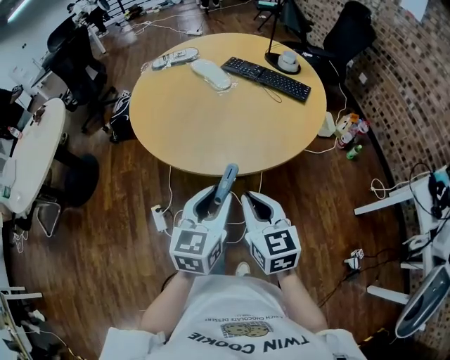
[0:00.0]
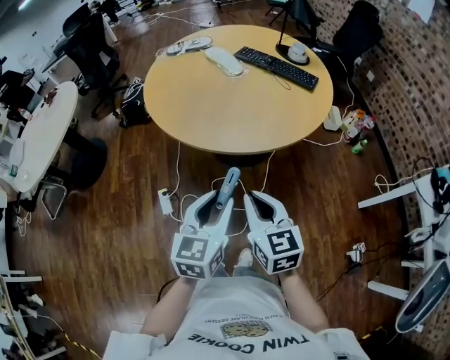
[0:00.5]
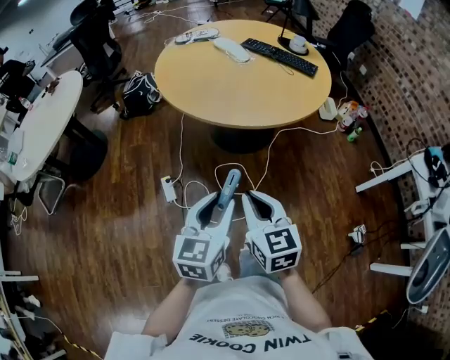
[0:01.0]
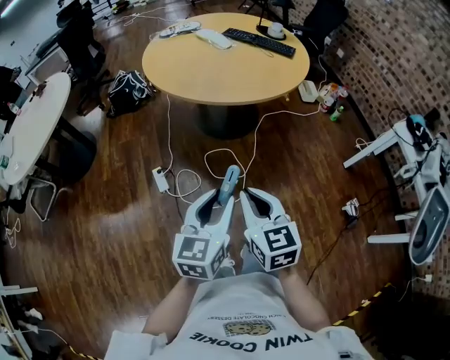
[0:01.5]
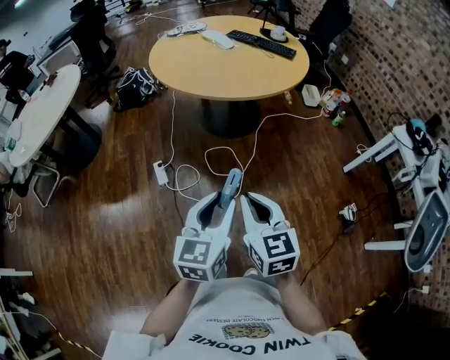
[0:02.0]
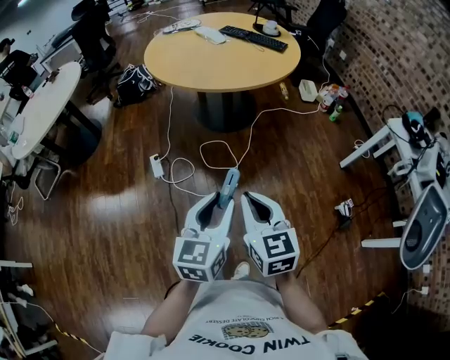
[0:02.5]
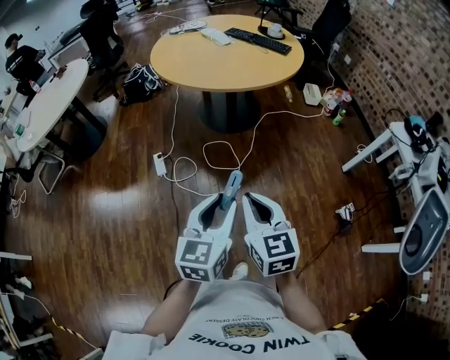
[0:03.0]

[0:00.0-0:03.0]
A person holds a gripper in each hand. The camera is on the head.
0:00.0 to 0:01.5: The grippers both shift backward by approximately 35 cm.
0:01.5 to 0:03.0: The grippers both shift backward and to the right by approximately 20 cm.

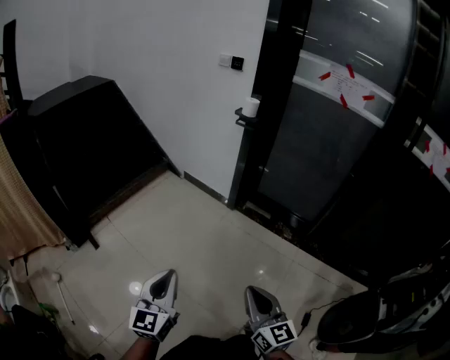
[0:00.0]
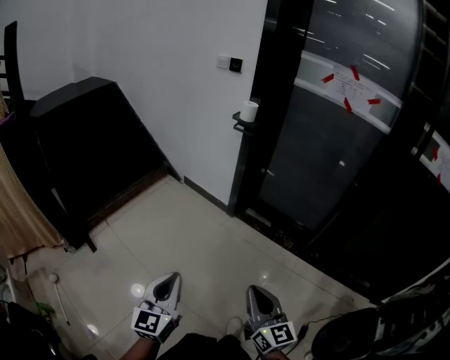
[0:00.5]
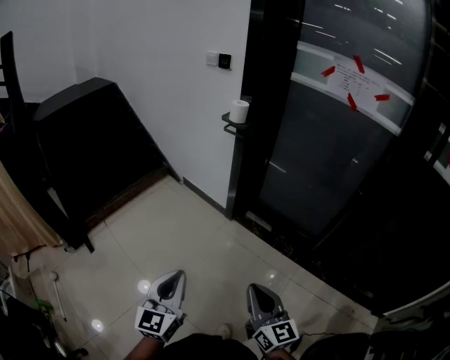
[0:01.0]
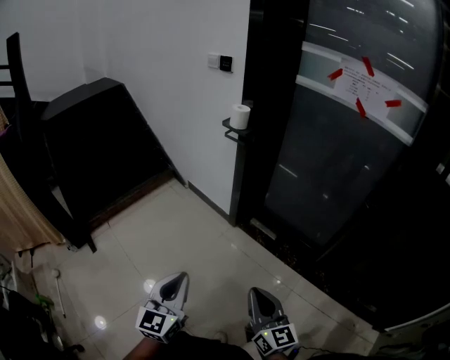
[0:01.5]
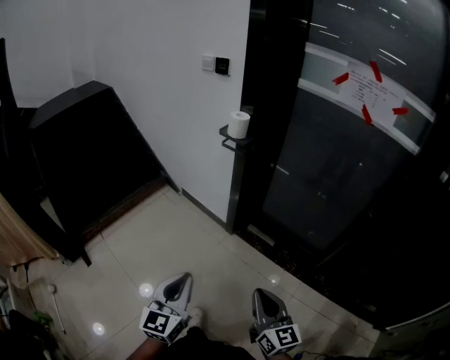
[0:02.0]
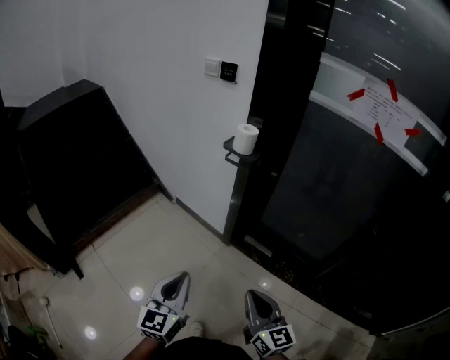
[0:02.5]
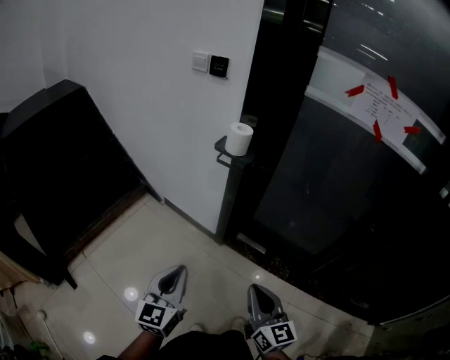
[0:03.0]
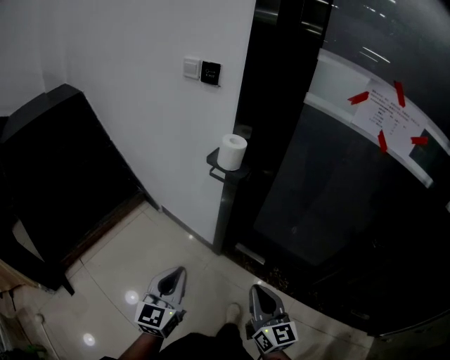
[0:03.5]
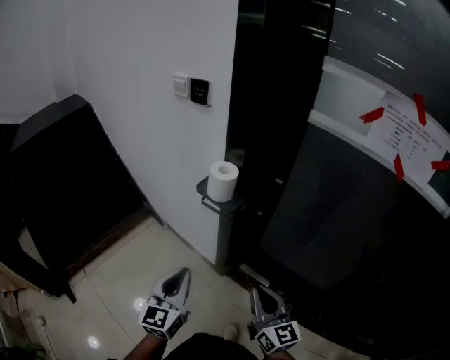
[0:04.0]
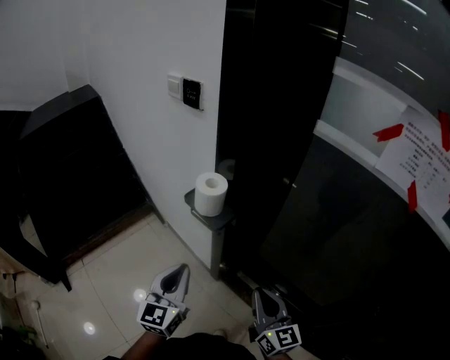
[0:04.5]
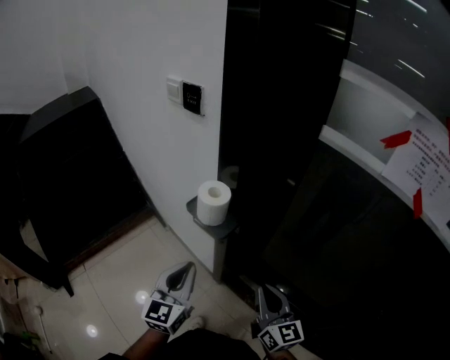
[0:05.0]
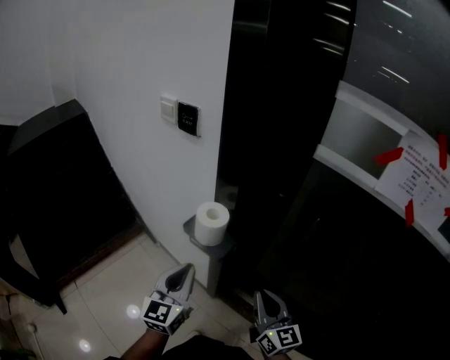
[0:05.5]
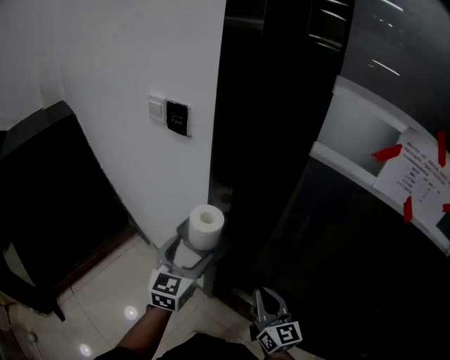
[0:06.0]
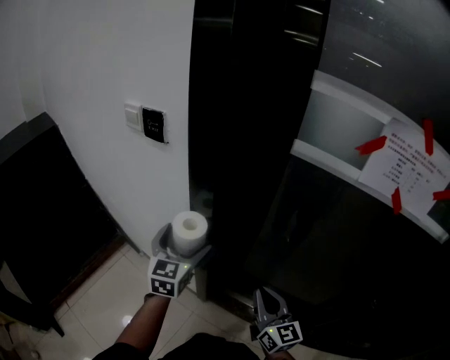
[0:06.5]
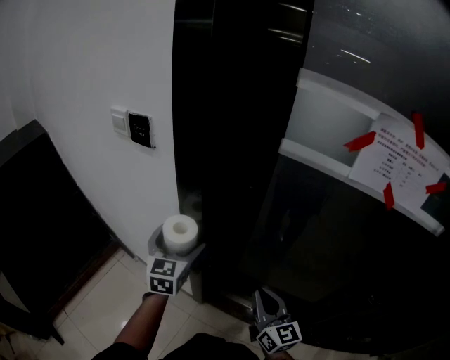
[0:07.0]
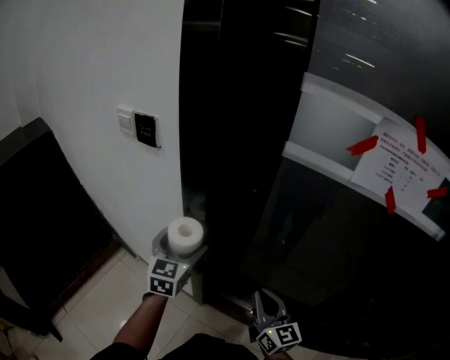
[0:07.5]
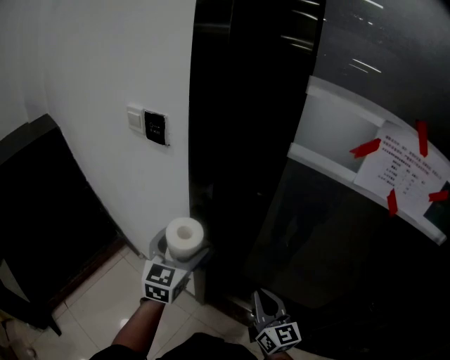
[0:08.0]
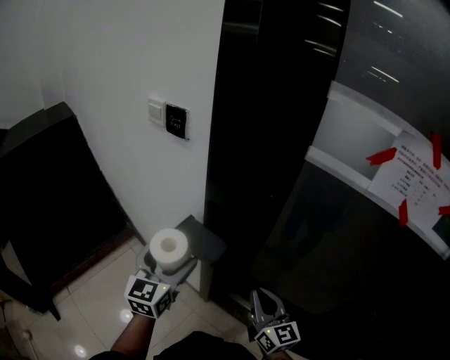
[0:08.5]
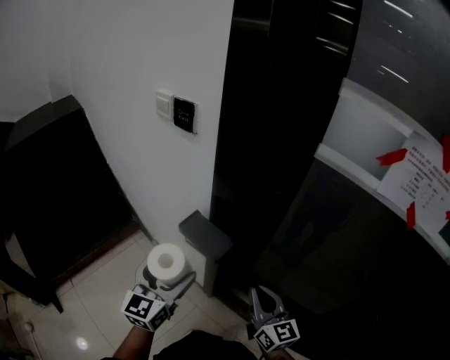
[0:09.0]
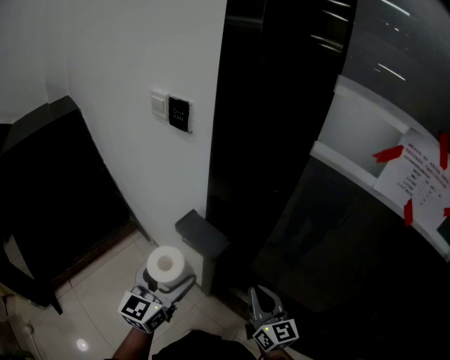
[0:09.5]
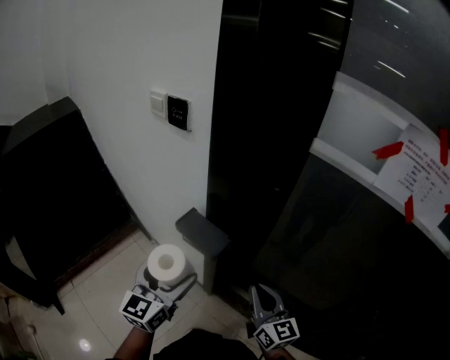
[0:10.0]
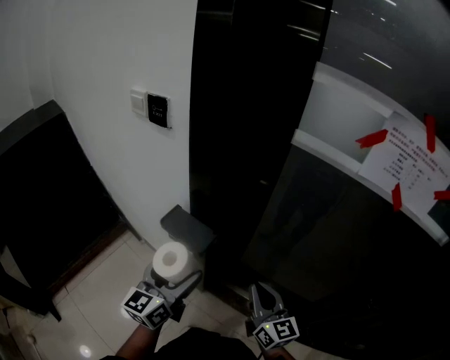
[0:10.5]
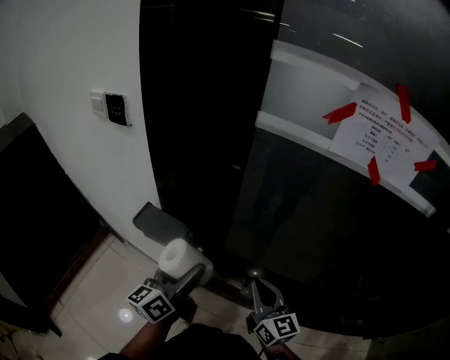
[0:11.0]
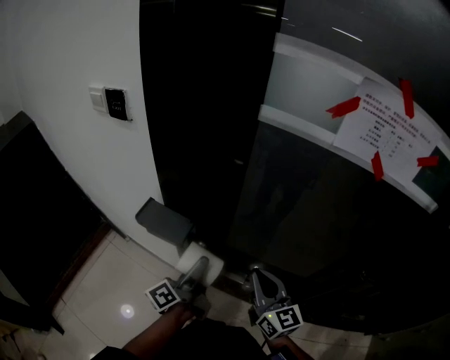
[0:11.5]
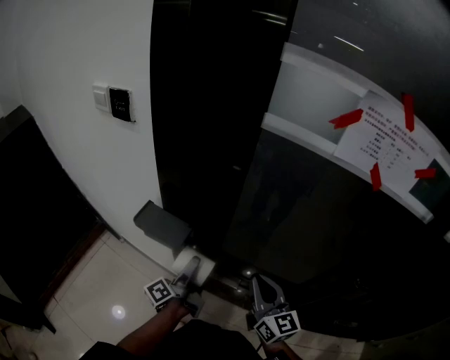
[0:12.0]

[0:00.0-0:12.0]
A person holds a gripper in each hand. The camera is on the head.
0:00.0 to 0:02.0: Both grippers move forward and to the right, about 35 cm.
0:02.0 to 0:04.0: The two grippers go about 35 cm forward.
0:04.0 to 0:06.0: The grippers both shift forward by roughly 20 cm. The left gripper opens its fingers.
0:08.0 to 0:10.0: The left gripper moves backward and to the left, about 10 cm.
0:10.0 to 0:12.0: The left gripper travels to the right, downward and forward by some 20 cm, and rolls counterclockwise, seen from behind, by some 80 degrees, while the right gripper travels to the right by approximately 10 cm.

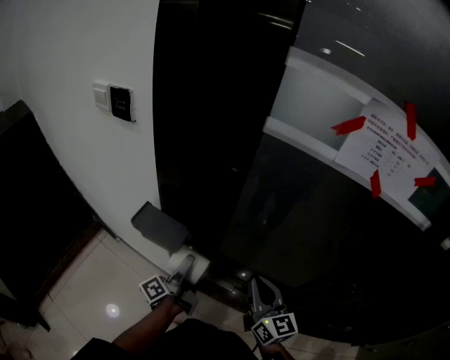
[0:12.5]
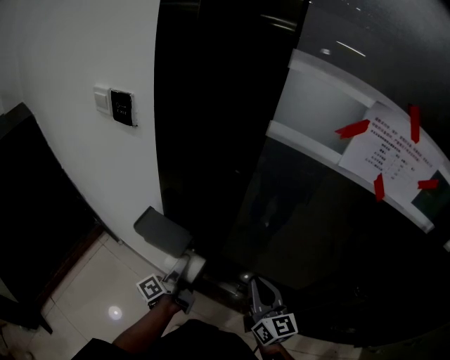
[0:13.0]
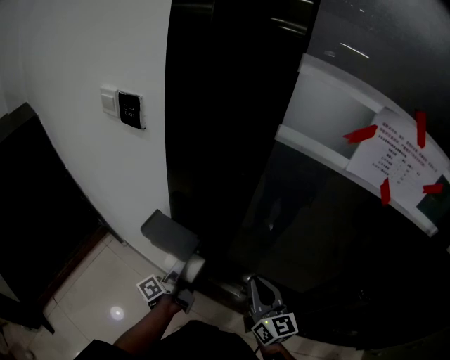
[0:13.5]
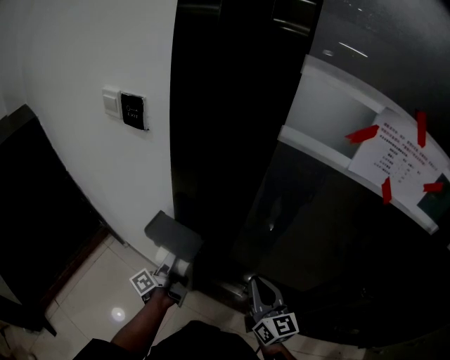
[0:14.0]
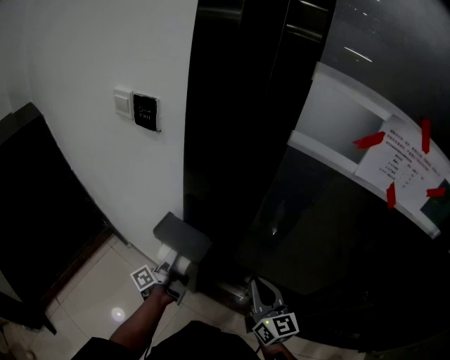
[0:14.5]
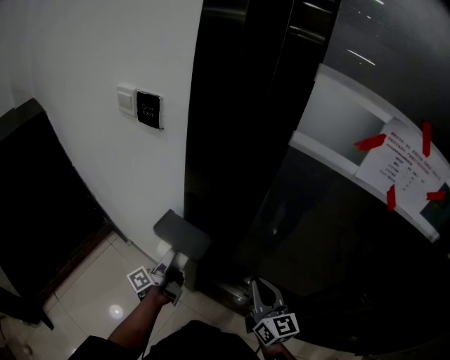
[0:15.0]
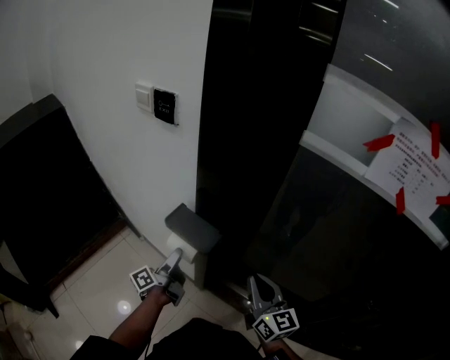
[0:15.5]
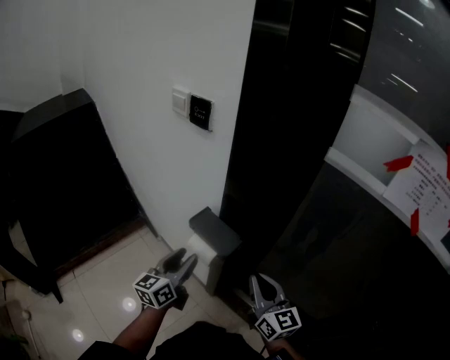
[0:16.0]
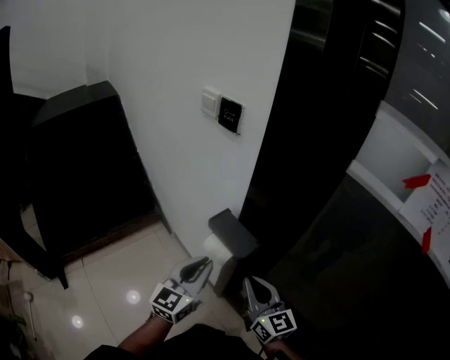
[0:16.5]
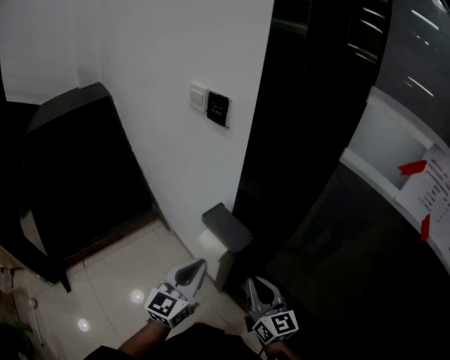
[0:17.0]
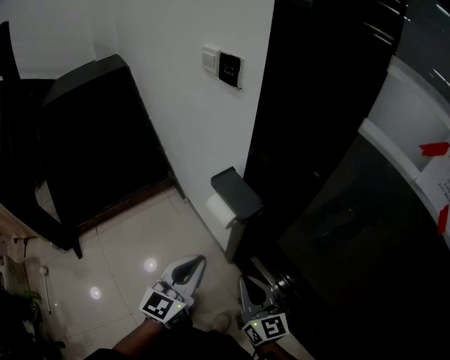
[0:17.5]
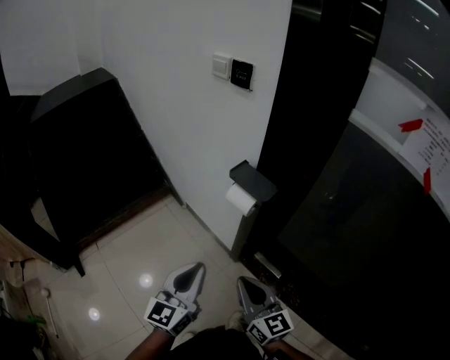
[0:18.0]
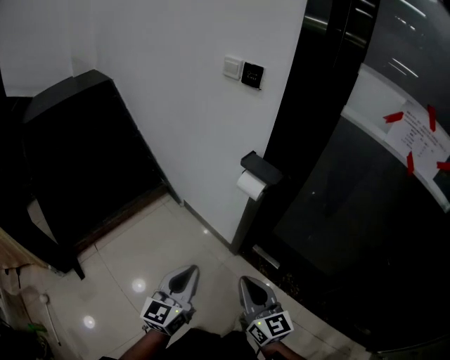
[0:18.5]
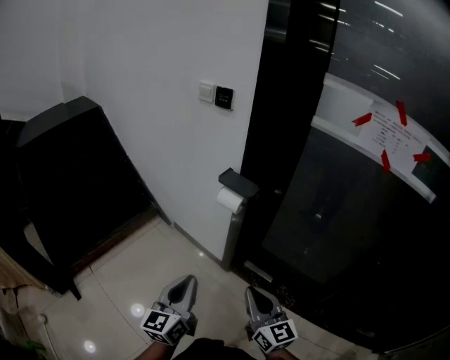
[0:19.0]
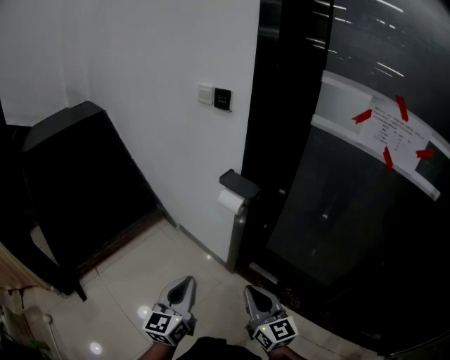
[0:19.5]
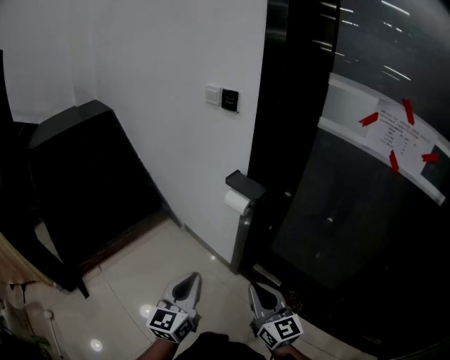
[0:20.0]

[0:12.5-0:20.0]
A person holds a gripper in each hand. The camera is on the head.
0:12.5 to 0:14.5: The right gripper goes about 5 cm to the left. The left gripper goes roughly 10 cm to the left.
0:14.5 to 0:16.5: The right gripper moves to the left, about 10 cm, and turns by about 30 degrees, while the left gripper travels backward and upward by approximately 15 cm, rolls clockwise, seen from behind, by some 90 degrees, and closes up.
0:16.5 to 0:18.0: Both grippers move backward and to the left, some 20 cm.
0:18.0 to 0:20.0: The grippers both shift backward by about 10 cm.

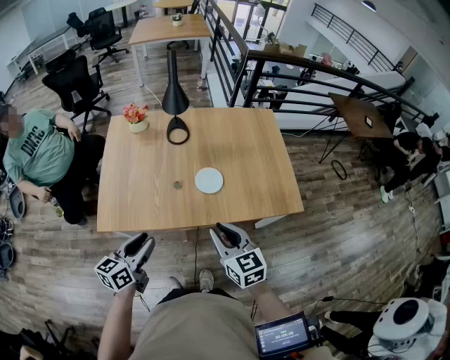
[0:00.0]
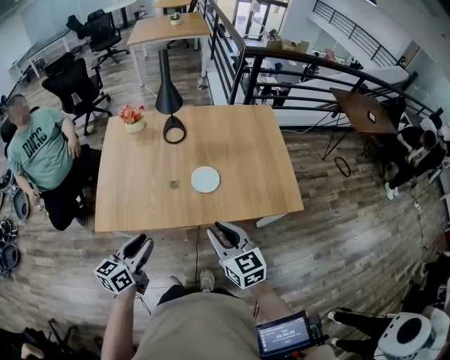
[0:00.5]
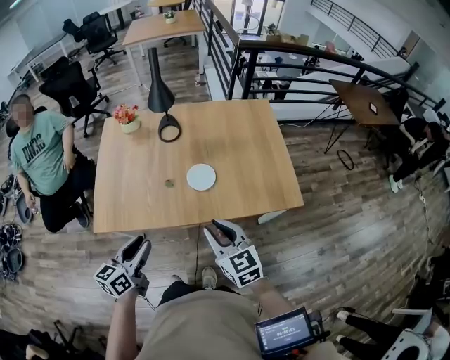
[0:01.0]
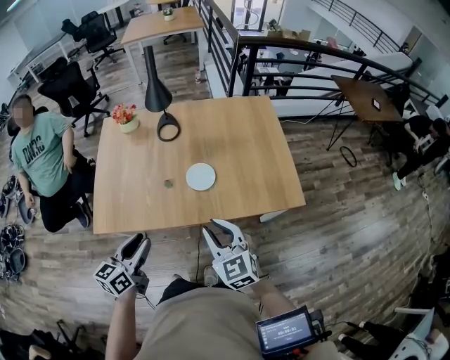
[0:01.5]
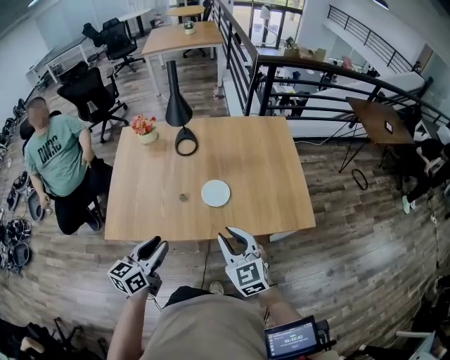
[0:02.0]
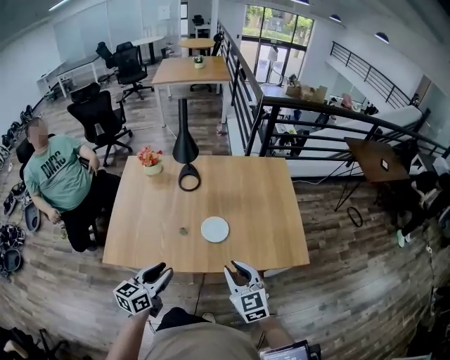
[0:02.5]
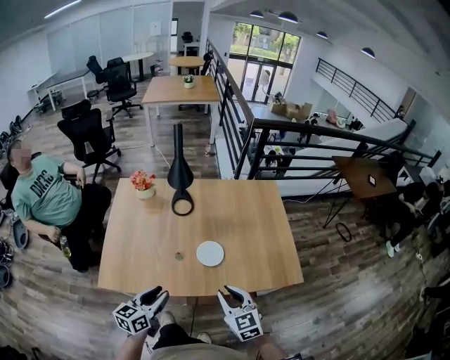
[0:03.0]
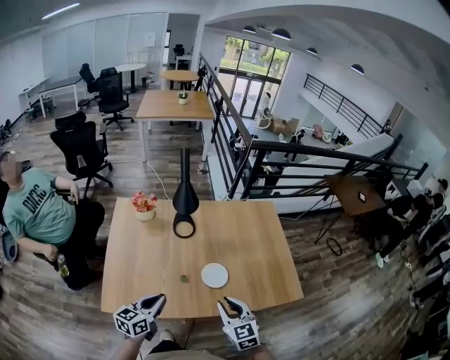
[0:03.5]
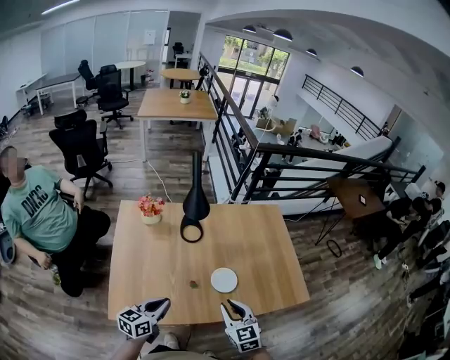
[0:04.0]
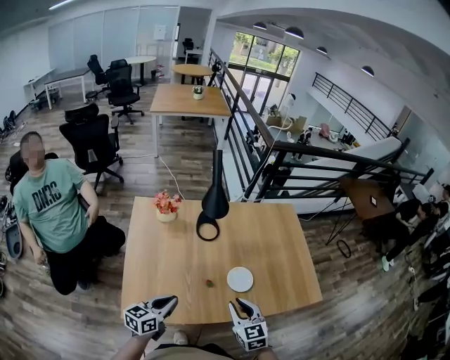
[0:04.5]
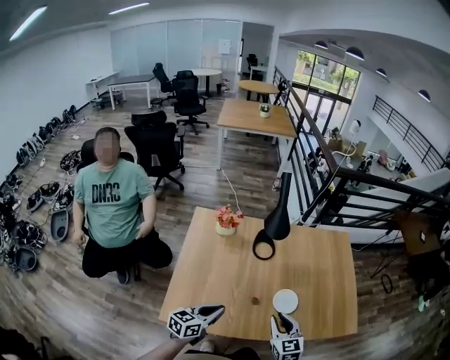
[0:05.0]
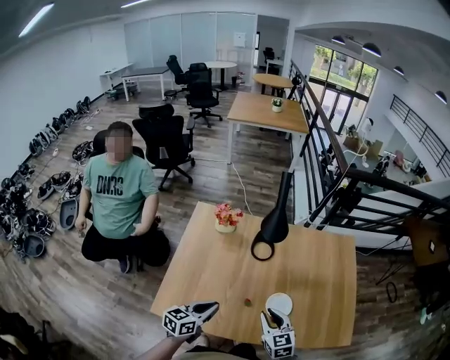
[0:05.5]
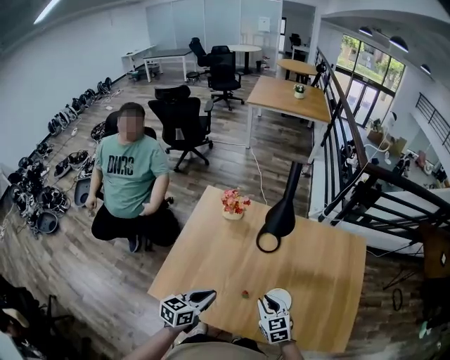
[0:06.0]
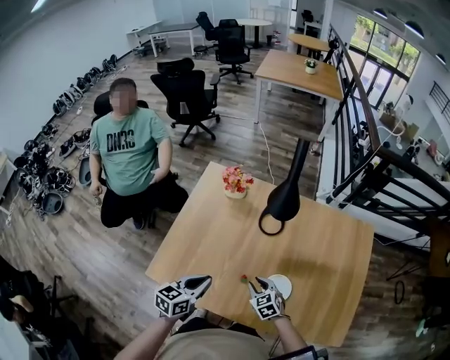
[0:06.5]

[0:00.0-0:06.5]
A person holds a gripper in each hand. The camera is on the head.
0:00.0 to 0:02.0: The two grippers go roughly 5 cm to the right.
0:02.0 to 0:04.5: The two grippers go approximately 20 cm to the left and forward. The left gripper closes its fingers.
0:04.5 to 0:06.5: The left gripper moves approximately 10 cm, and rotates some 20 degrees; the right gripper goes roughly 20 cm downward, and turns by about 40 degrees.
